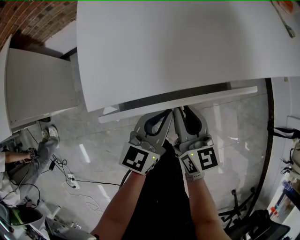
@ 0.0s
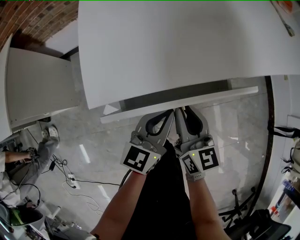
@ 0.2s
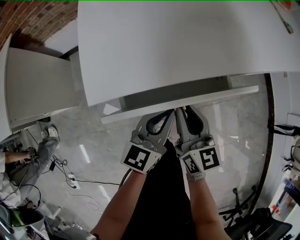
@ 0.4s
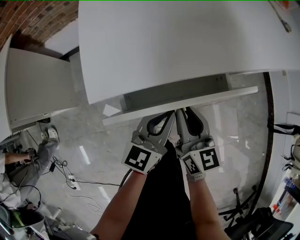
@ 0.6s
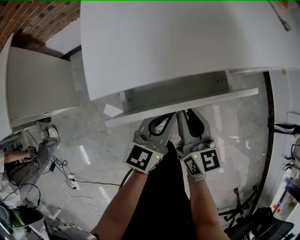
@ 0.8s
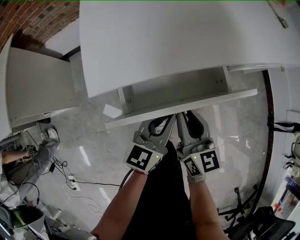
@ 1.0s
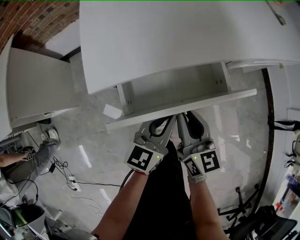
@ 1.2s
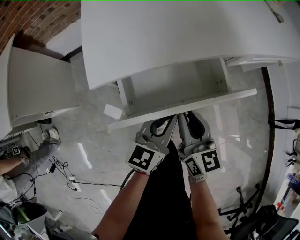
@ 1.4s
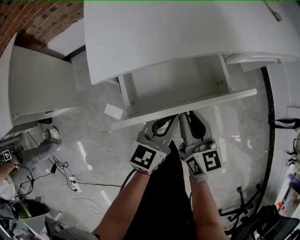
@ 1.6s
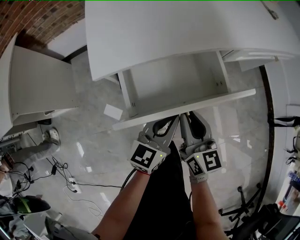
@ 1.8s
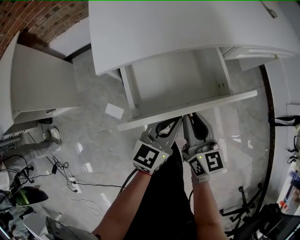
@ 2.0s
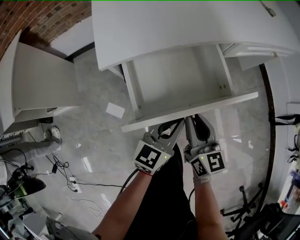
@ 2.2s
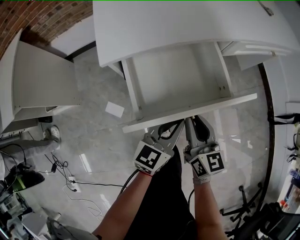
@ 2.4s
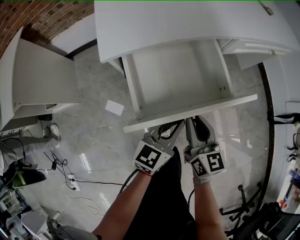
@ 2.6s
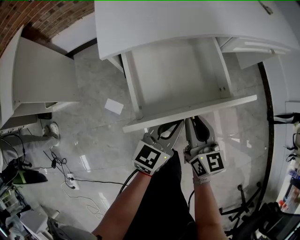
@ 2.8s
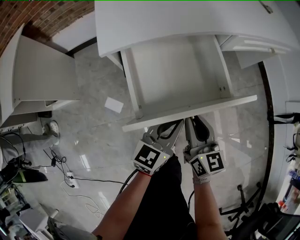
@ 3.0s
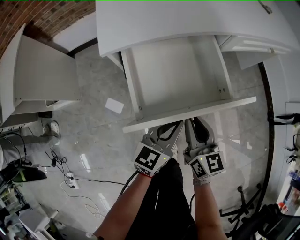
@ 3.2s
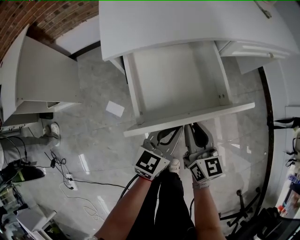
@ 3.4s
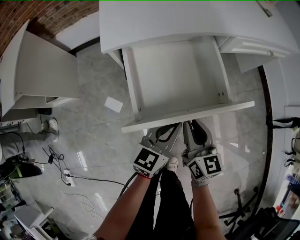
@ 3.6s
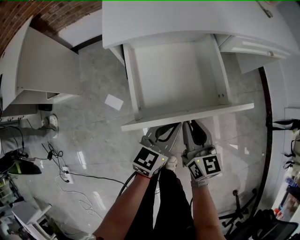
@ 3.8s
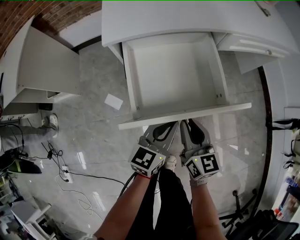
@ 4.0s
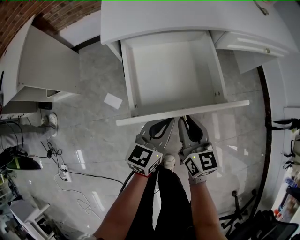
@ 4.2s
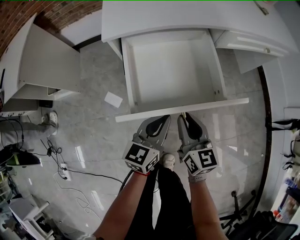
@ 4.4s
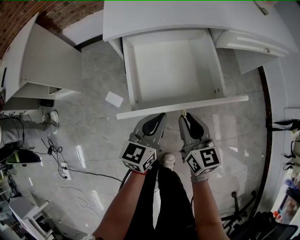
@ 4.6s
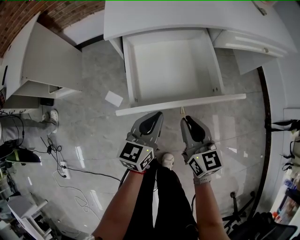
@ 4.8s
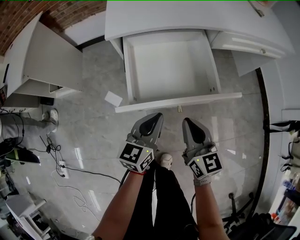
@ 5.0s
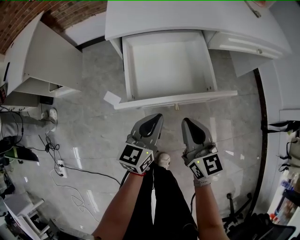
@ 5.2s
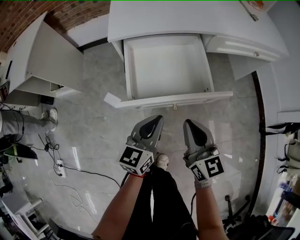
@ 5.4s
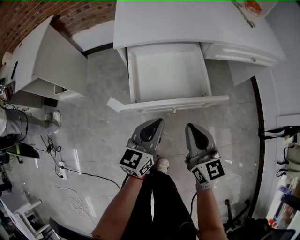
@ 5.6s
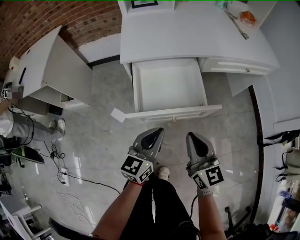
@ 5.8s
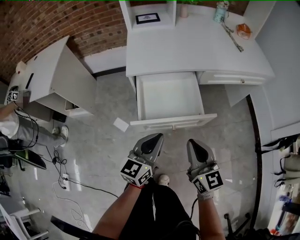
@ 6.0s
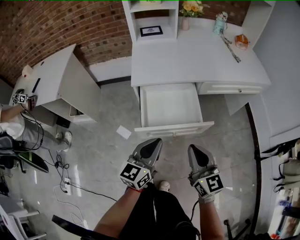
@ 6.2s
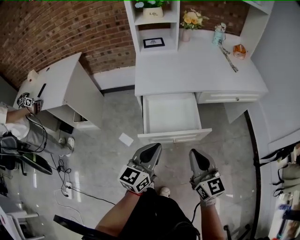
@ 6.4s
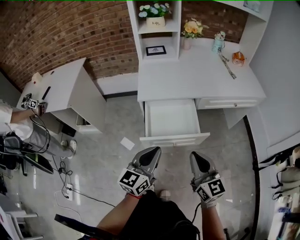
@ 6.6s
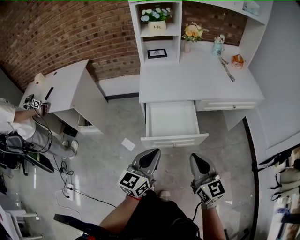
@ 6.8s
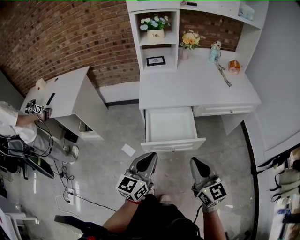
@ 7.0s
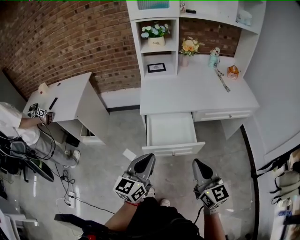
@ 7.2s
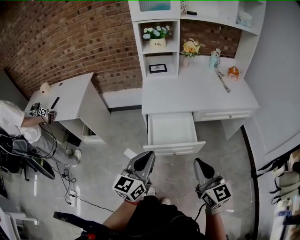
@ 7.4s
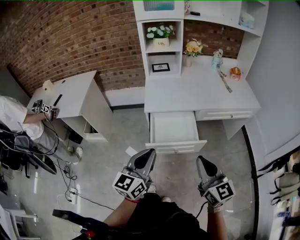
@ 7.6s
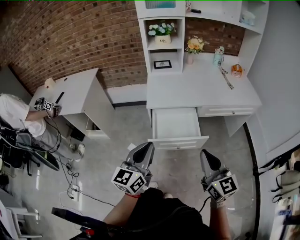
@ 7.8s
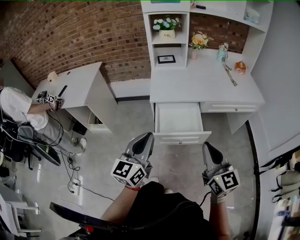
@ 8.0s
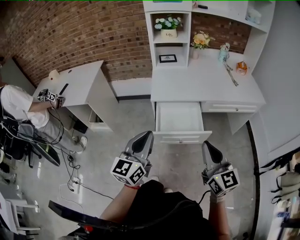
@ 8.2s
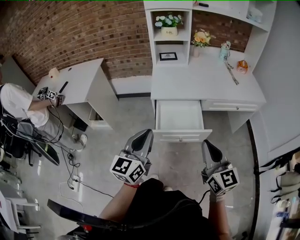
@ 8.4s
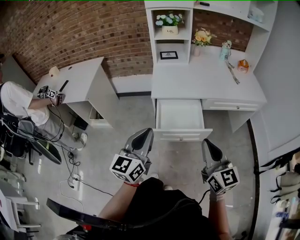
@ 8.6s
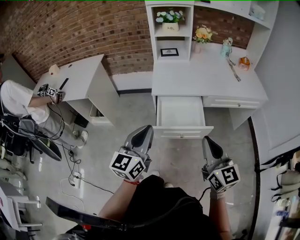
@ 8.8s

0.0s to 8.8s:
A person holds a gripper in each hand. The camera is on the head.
0.0s to 1.4s: Both grippers move backward, some 5 cm.
1.4s to 3.0s: The two grippers go some 10 cm backward.
3.0s to 4.4s: There are only small adjustments of the grippers.
4.4s to 5.8s: The two grippers go some 15 cm upward.
5.8s to 7.4s: The grippers both shift upward by approximately 25 cm.
7.4s to 8.8s: The left gripper changes place by roughly 5 cm.

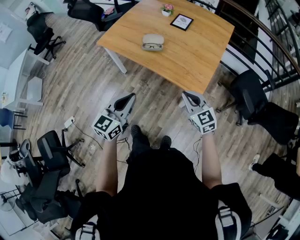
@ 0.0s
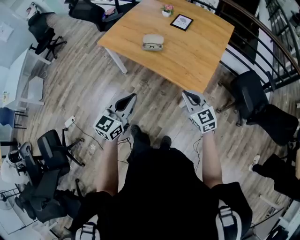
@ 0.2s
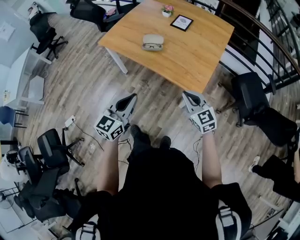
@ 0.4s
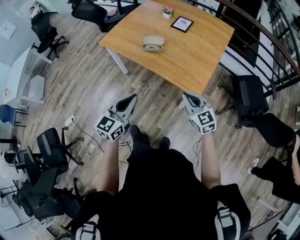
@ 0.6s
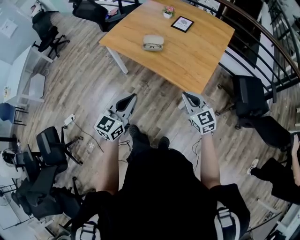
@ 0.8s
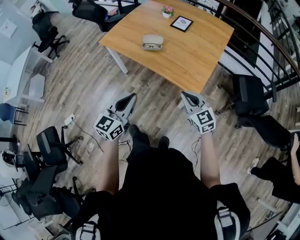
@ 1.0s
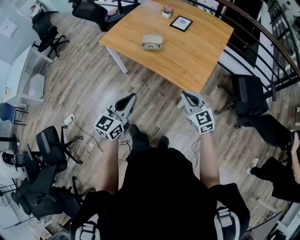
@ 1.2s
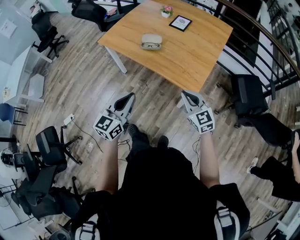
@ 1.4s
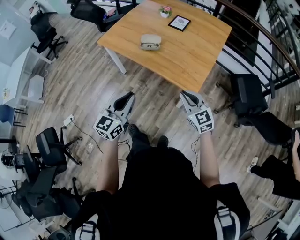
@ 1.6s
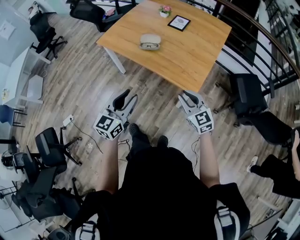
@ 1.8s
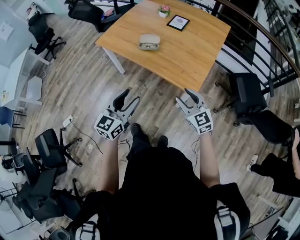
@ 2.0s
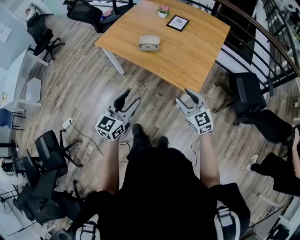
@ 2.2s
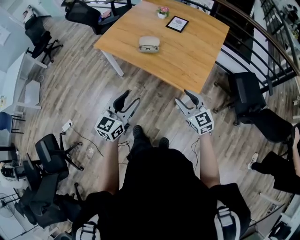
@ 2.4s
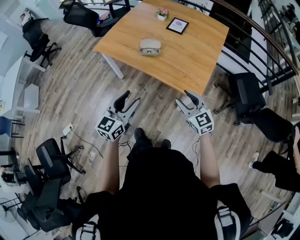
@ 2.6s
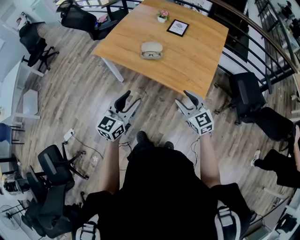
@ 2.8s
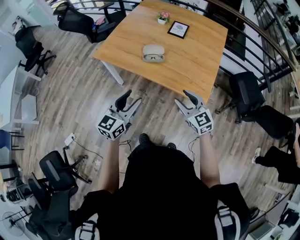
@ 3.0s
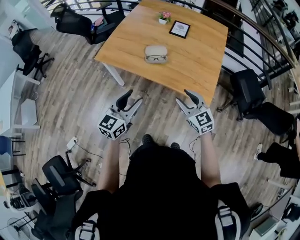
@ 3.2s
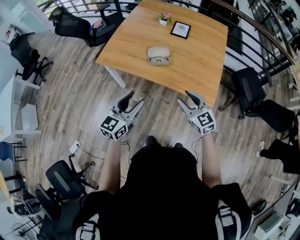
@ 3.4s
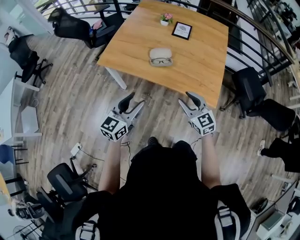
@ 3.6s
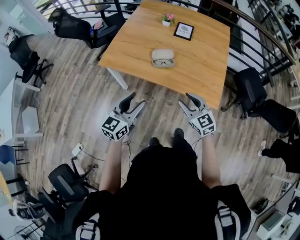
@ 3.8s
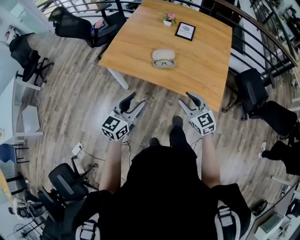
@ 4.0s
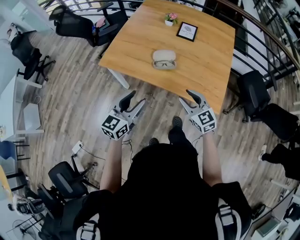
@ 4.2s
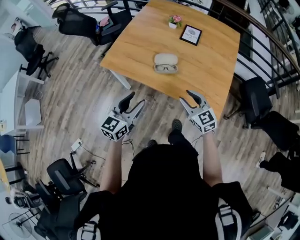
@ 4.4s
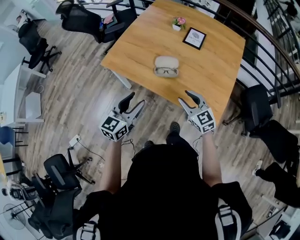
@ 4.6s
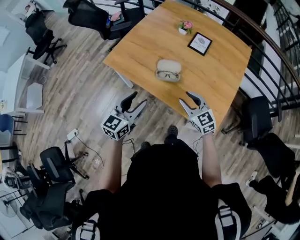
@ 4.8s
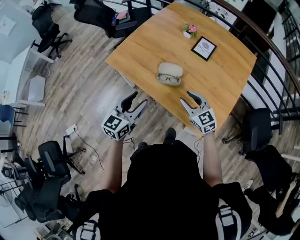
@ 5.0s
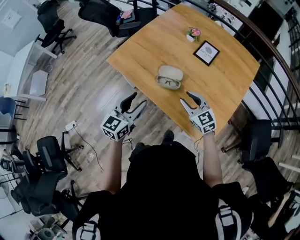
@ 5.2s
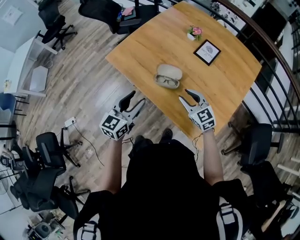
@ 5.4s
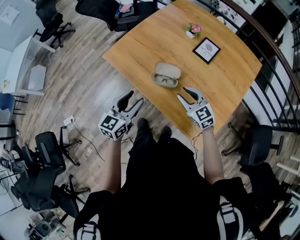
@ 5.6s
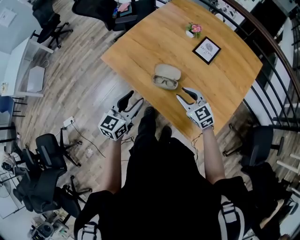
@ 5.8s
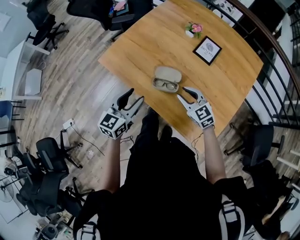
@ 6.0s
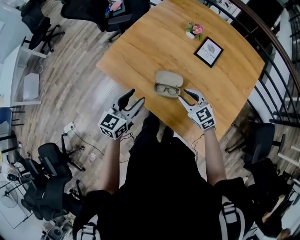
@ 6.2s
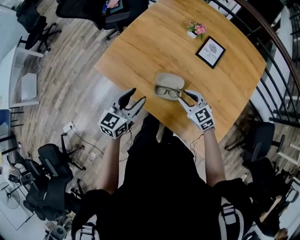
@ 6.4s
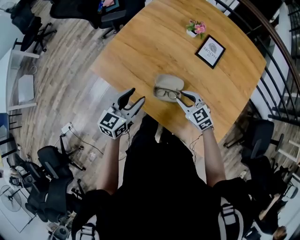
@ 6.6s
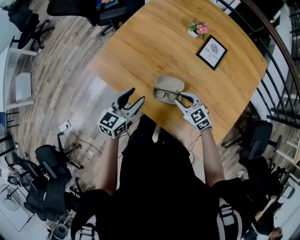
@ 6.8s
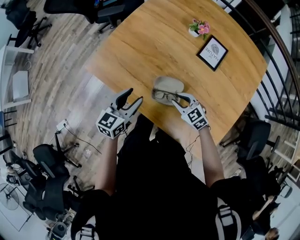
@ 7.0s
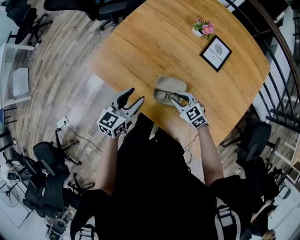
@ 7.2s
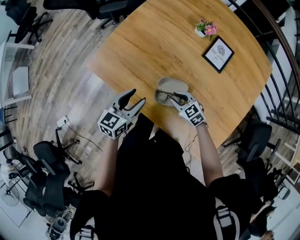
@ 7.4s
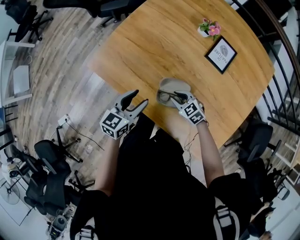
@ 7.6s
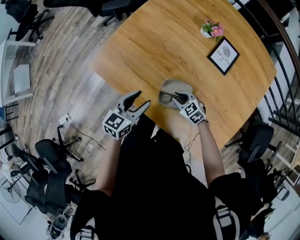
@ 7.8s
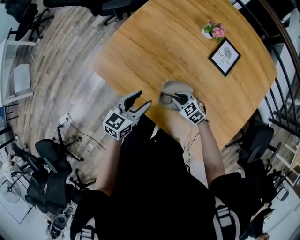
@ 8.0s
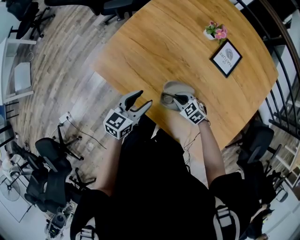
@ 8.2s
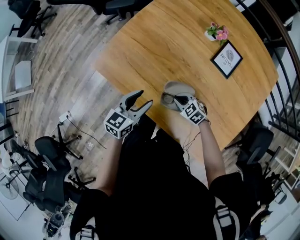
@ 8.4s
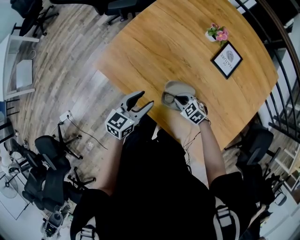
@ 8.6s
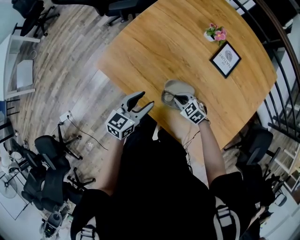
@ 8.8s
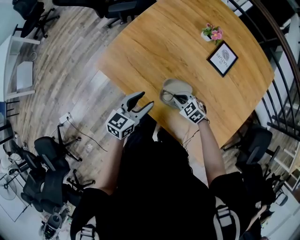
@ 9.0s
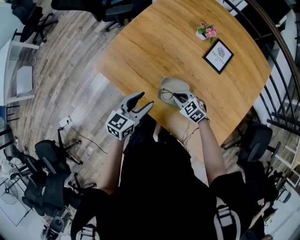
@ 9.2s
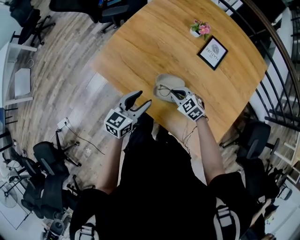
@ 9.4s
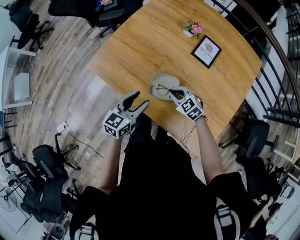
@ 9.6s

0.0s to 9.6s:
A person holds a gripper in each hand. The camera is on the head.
0.0s to 1.6s: There are only small adjustments of the grippers.
1.6s to 3.2s: The right gripper goes some 15 cm to the left and forward, and opens. Meanwhile the left gripper shifts approximately 20 cm forward and to the left, and opens its fingers.
3.2s to 4.8s: The grippers both shift forward by some 15 cm.
4.8s to 6.4s: The left gripper goes about 15 cm forward. The right gripper goes about 20 cm forward and downward.
6.4s to 8.0s: The right gripper shifts roughly 15 cm downward, and rotates some 20 degrees; the left gripper is displaced downward and forward by some 10 cm.
8.0s to 9.6s: The left gripper is displaced backward and upward by roughly 10 cm, while the right gripper goes about 10 cm upward.

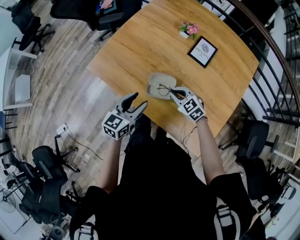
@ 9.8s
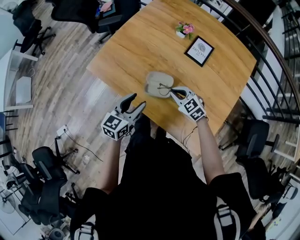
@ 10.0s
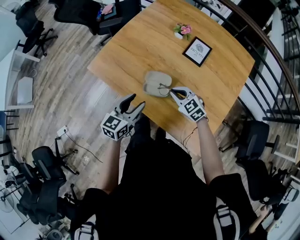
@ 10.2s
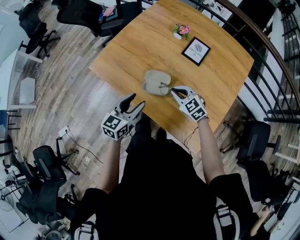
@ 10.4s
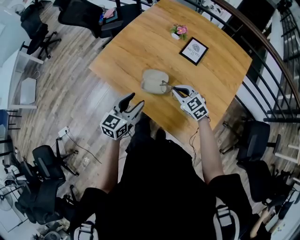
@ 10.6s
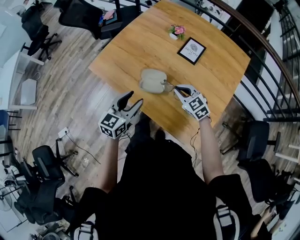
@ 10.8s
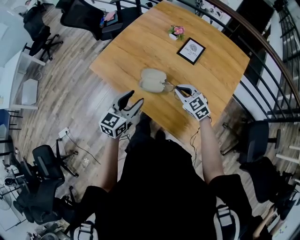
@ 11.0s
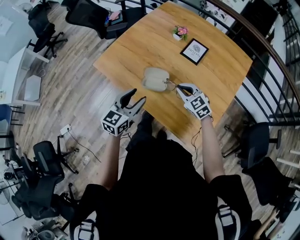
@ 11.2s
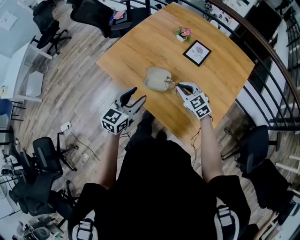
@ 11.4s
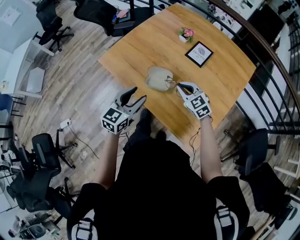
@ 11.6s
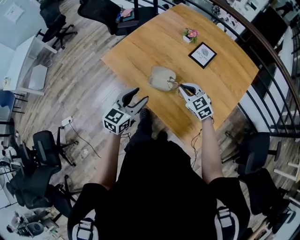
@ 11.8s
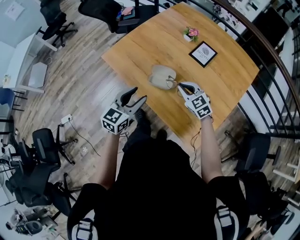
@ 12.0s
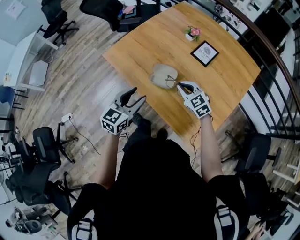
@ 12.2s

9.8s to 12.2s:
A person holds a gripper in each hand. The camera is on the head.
9.8s to 11.0s: The right gripper goes some 10 cm to the right, upward and backward. The left gripper goes about 10 cm backward and upward.
11.0s to 12.2s: The grippers make only small movements.

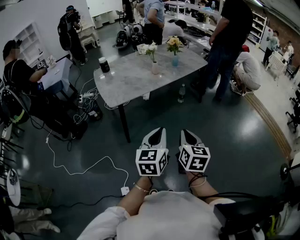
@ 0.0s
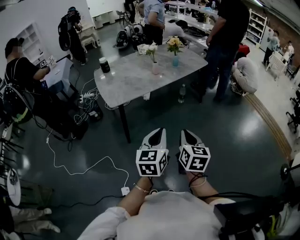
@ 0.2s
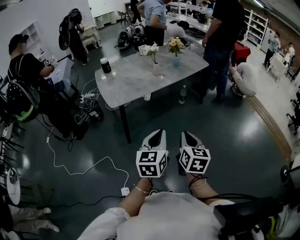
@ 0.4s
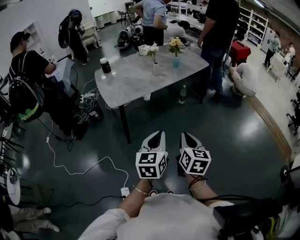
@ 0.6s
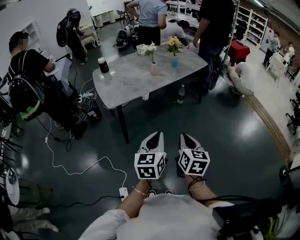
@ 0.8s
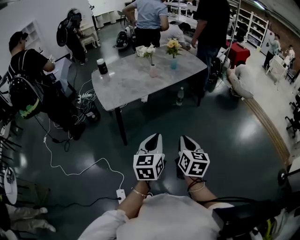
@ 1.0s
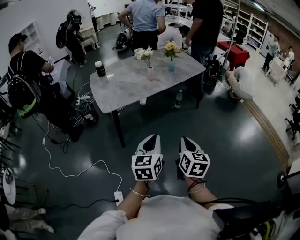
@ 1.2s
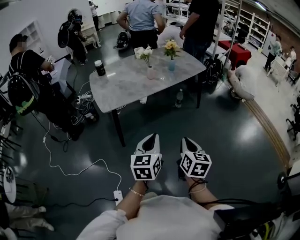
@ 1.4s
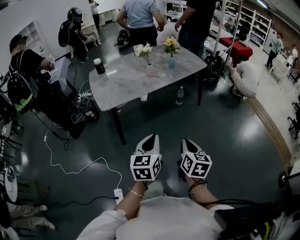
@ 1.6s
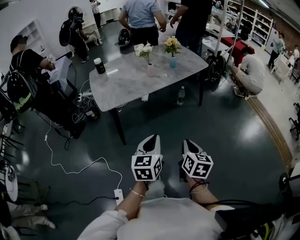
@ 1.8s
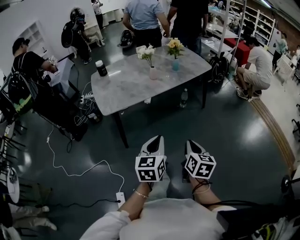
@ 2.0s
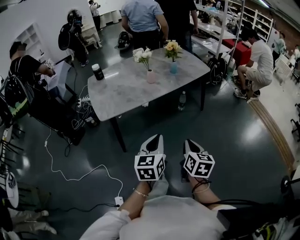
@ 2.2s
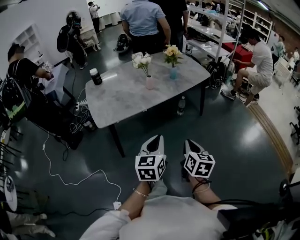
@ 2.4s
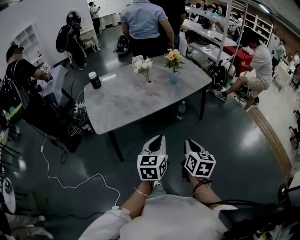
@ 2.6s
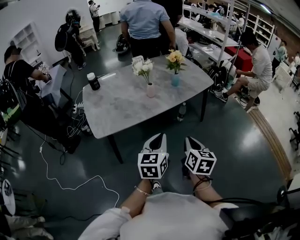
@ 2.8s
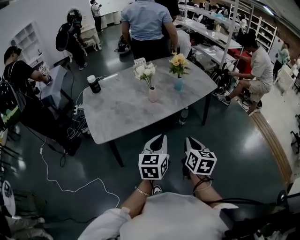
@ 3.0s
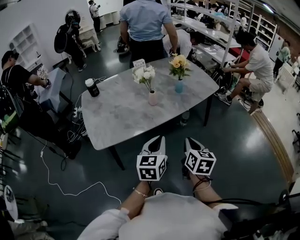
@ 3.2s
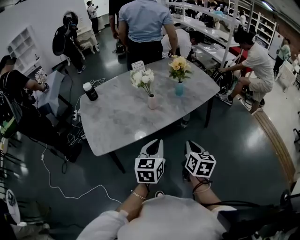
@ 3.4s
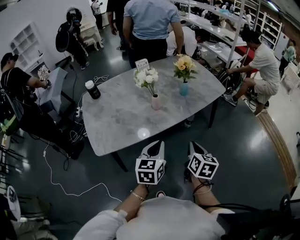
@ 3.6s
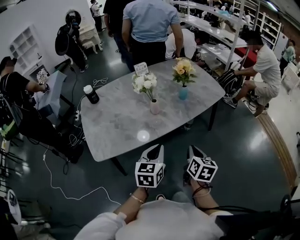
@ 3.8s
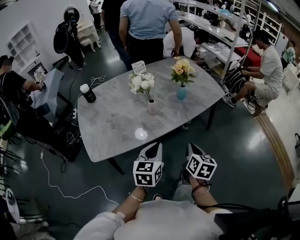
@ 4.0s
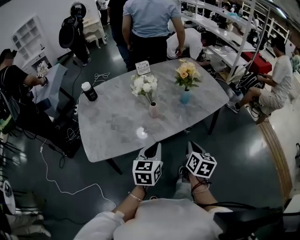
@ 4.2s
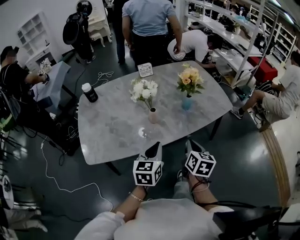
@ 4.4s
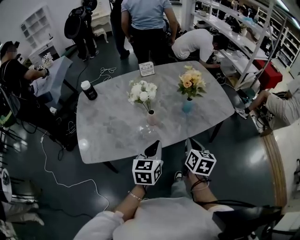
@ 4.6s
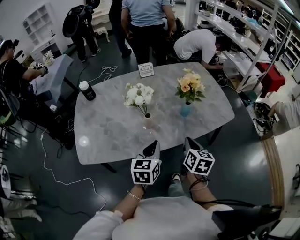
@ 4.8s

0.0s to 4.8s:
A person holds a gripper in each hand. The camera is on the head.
0.0s to 1.6s: The left gripper moves some 5 cm. The right gripper heads to the right, covering approximately 10 cm.
1.6s to 3.2s: The grippers both shift forward by roughly 30 cm.
3.2s to 4.8s: The two grippers go about 25 cm forward.
